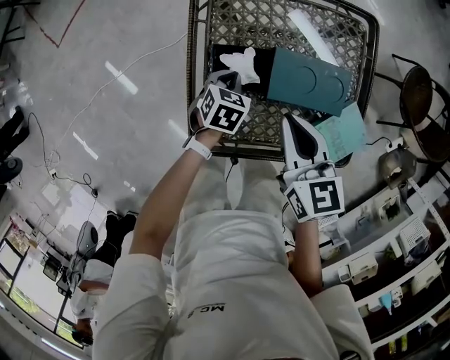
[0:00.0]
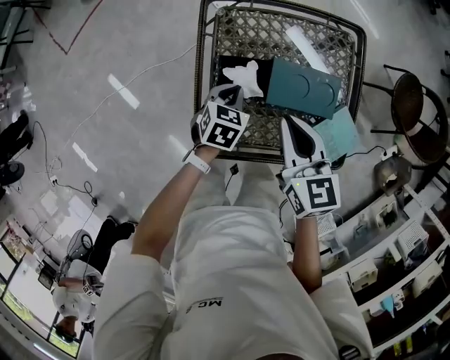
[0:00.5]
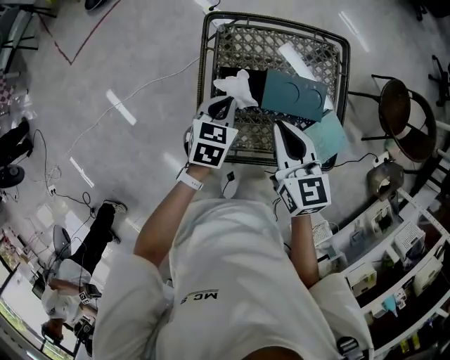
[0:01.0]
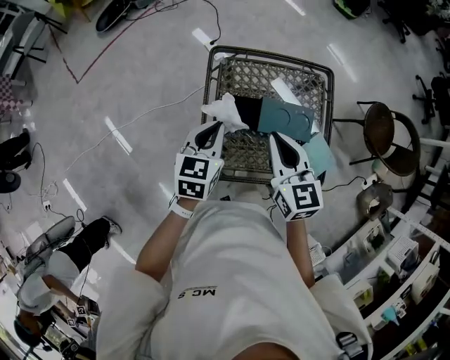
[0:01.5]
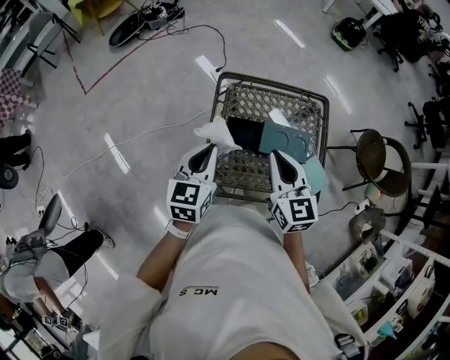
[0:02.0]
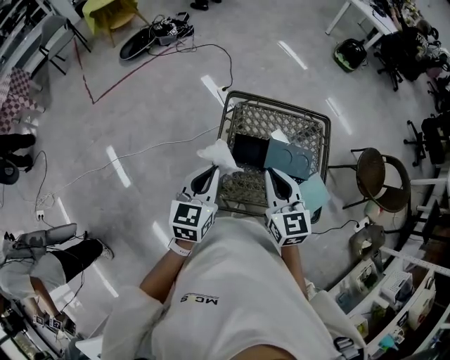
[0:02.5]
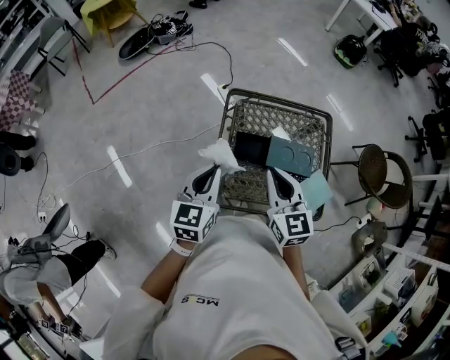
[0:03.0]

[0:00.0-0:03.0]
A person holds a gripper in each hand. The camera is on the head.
0:00.0 to 0:01.5: The right gripper moves upward, roughly 15 cm, while the left gripper goes about 30 cm upward, and turns by about 30 degrees.
0:01.5 to 0:03.0: The left gripper is displaced upward, to the left and backward by some 10 cm; the right gripper moves to the left, roughly 5 cm.

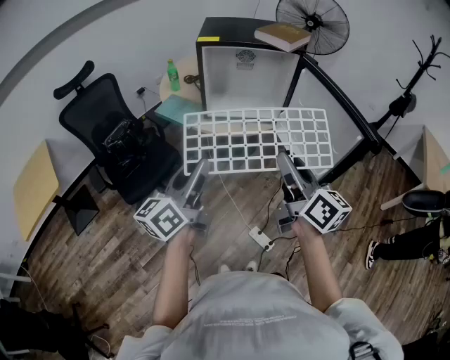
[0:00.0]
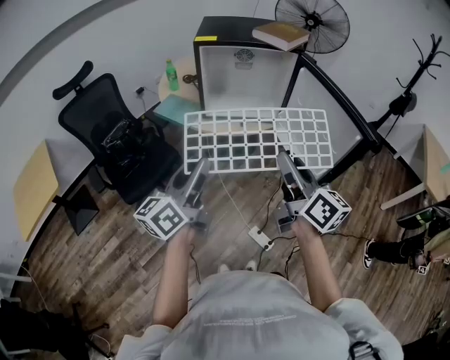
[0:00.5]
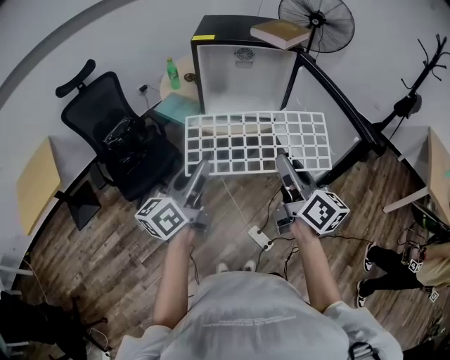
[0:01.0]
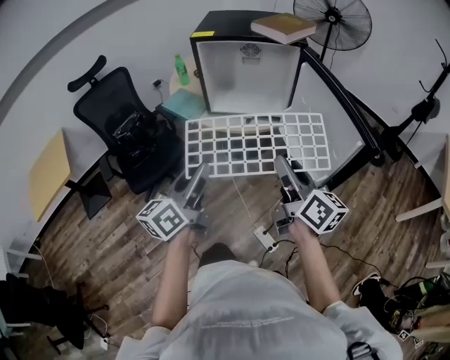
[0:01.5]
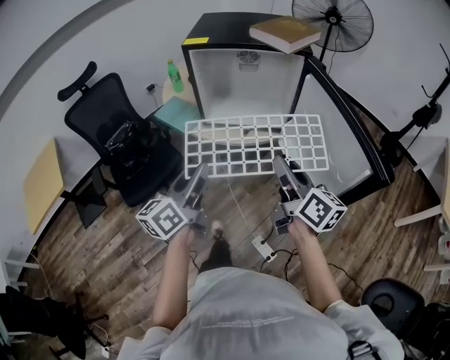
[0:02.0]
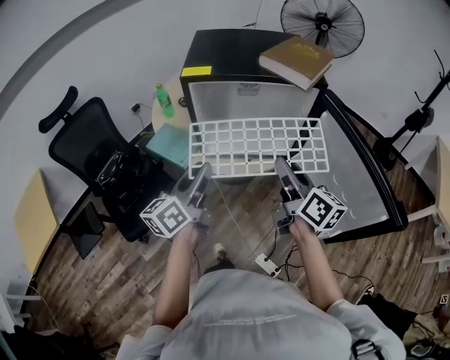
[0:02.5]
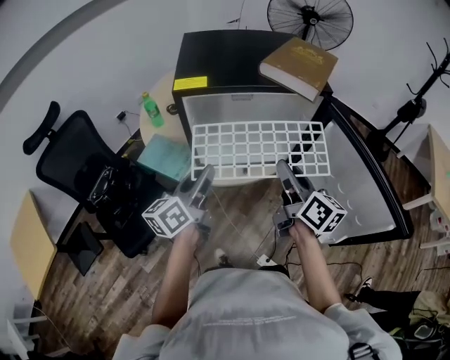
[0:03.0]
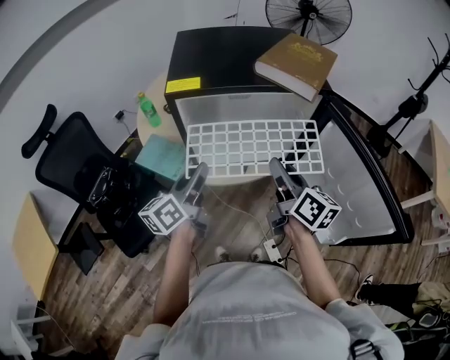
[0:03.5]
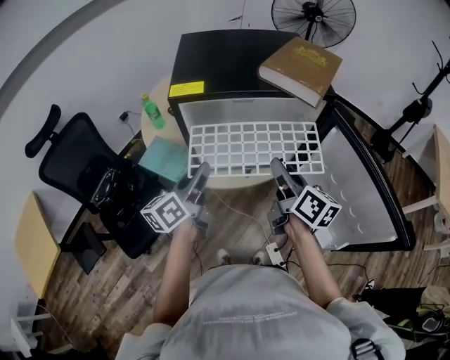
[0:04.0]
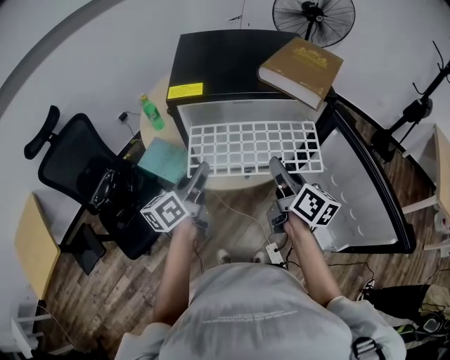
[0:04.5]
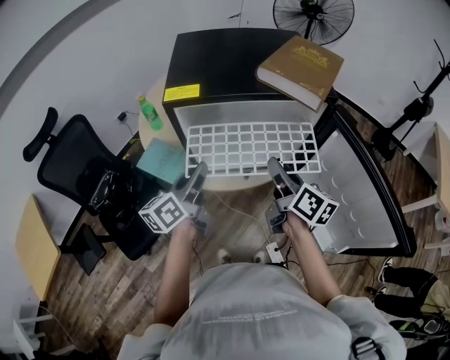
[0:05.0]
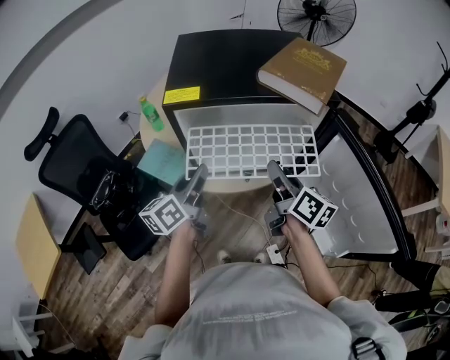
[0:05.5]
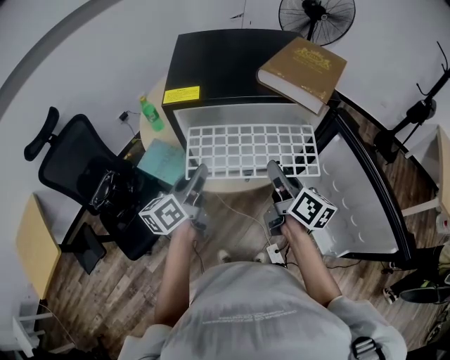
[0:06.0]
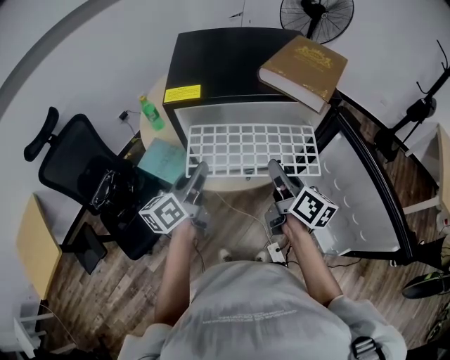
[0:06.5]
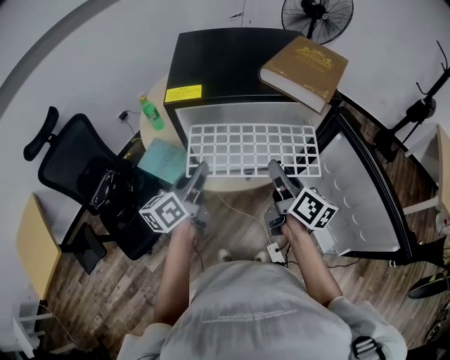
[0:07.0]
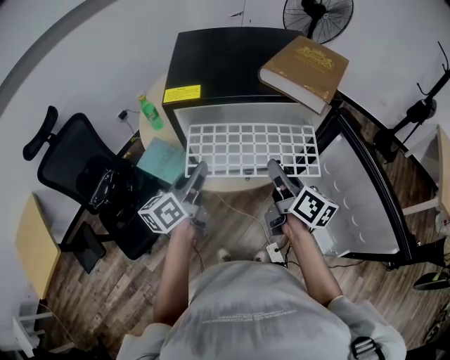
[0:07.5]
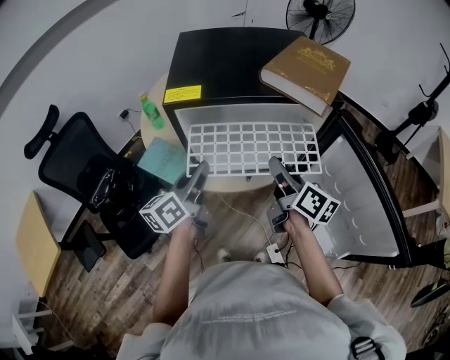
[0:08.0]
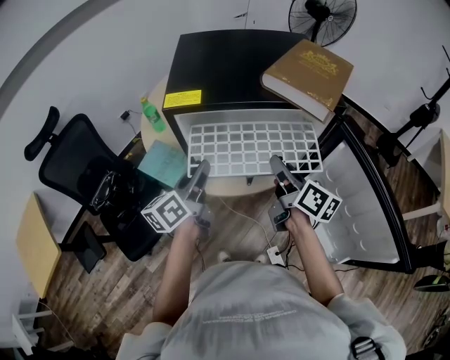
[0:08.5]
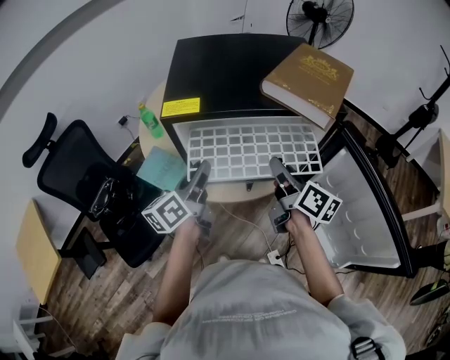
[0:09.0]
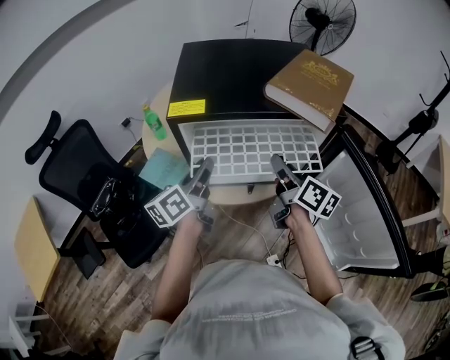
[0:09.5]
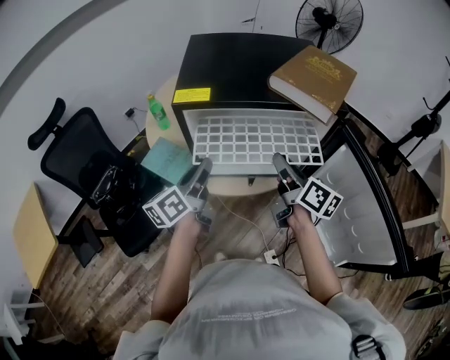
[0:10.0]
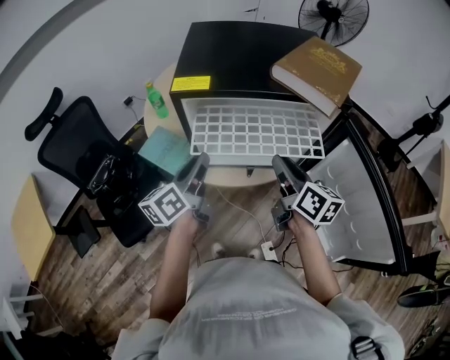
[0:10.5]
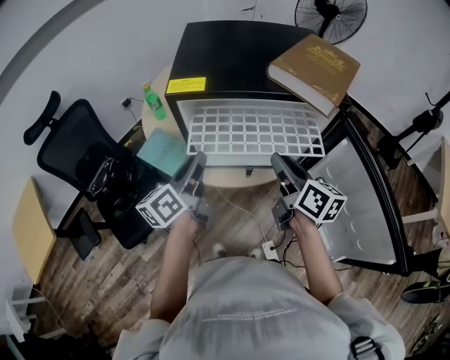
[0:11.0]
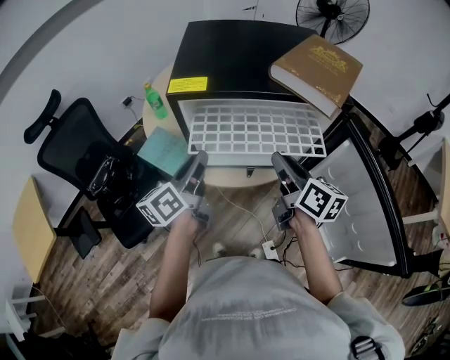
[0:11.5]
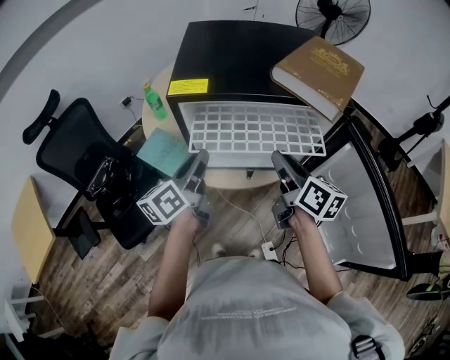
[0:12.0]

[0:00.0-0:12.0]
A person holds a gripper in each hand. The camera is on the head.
0:00.0 to 0:02.0: The right gripper heads forward, downward and to the right, covering about 15 cm. Meanwhile the left gripper is displaced forward and to the right by some 10 cm.
0:02.0 to 0:04.0: The two grippers go roughly 20 cm forward.
0:04.0 to 0:06.0: The grippers make only small movements.
0:06.0 to 0:08.0: Both grippers stay put.
0:08.0 to 0:12.0: There are only small adjustments of the grippers.

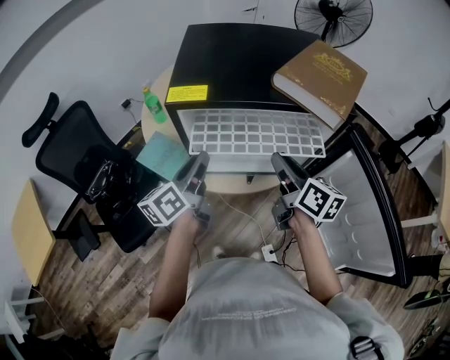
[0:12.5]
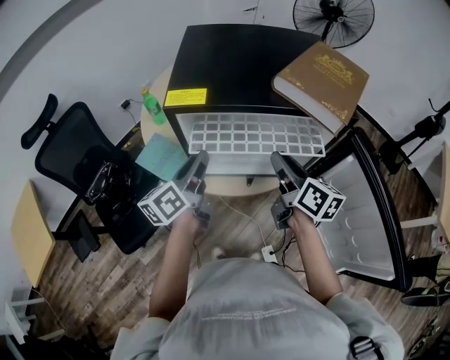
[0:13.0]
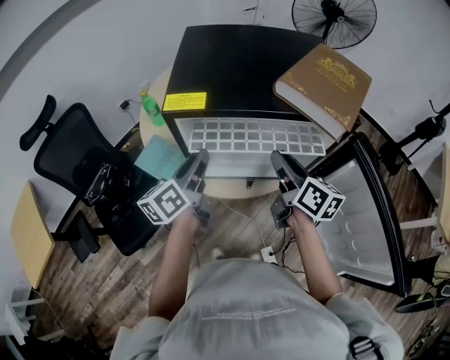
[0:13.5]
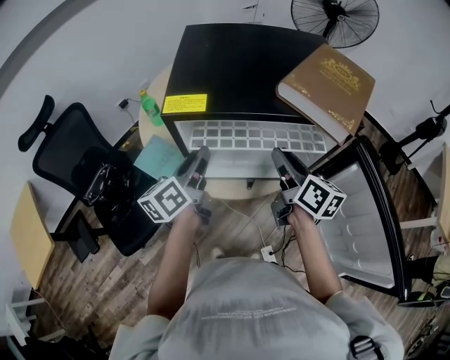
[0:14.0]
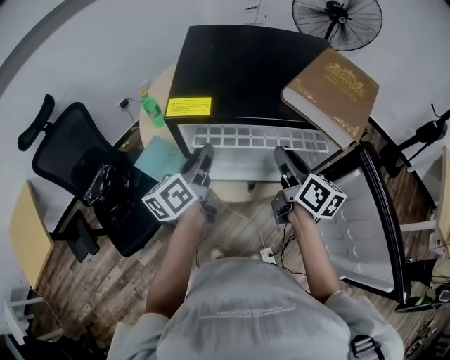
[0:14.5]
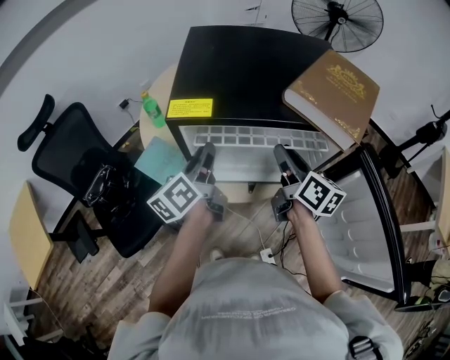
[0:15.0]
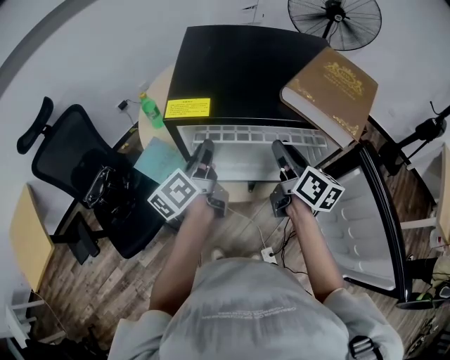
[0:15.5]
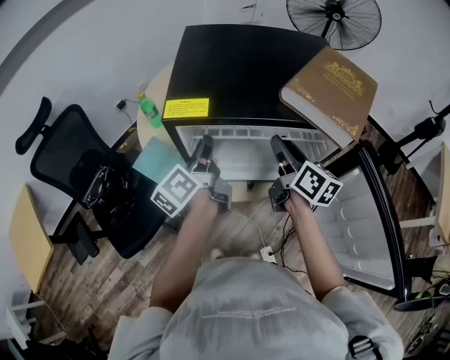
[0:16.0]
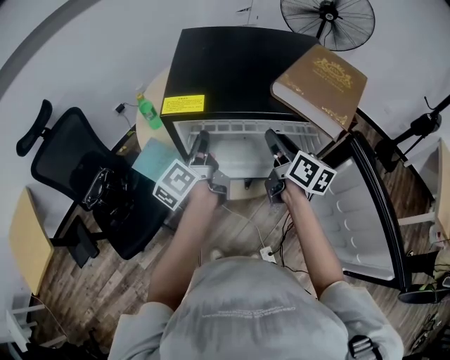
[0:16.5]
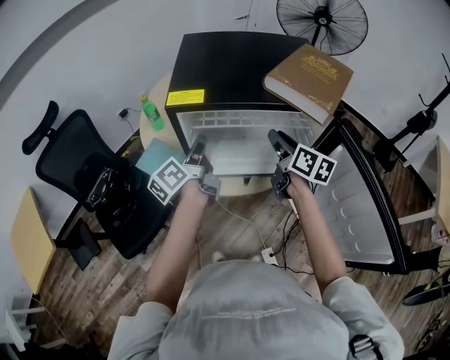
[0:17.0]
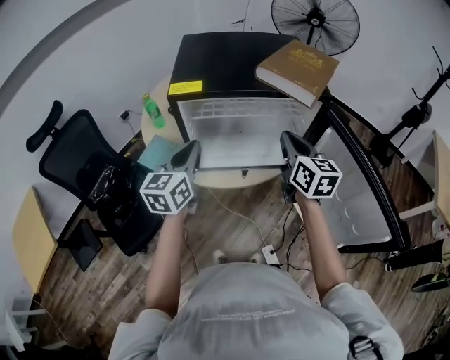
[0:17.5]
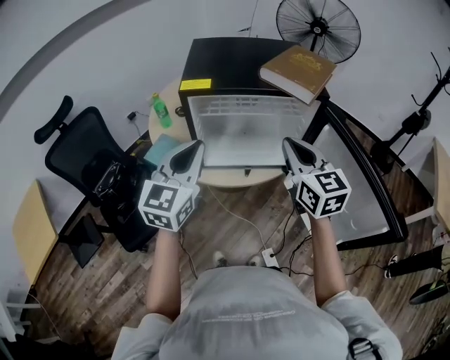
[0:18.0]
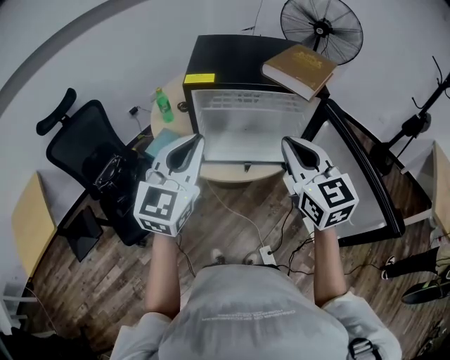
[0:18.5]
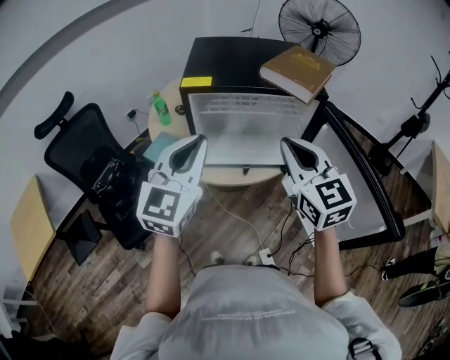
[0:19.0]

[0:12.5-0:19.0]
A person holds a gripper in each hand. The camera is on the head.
0:12.5 to 0:14.5: Both grippers move forward, approximately 5 cm.
0:17.0 to 0:19.0: Both grippers move backward and upward, approximately 25 cm. The left gripper rolls clockwise, seen from behind, by about 80 degrees. The right gripper twists approximately 50 degrees counterclockwise, seen from behind, and closes up.

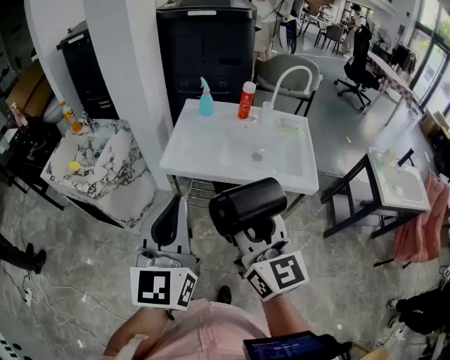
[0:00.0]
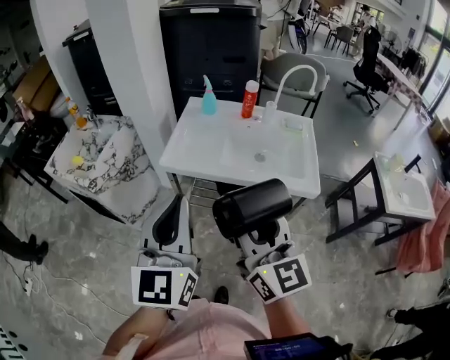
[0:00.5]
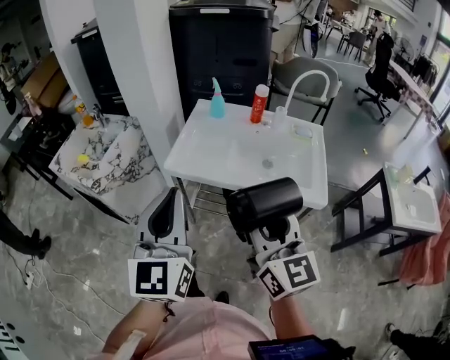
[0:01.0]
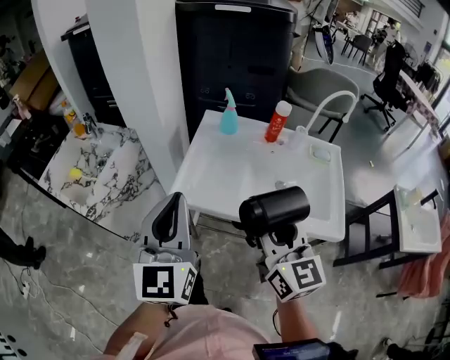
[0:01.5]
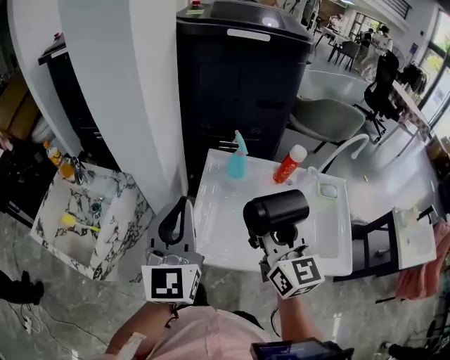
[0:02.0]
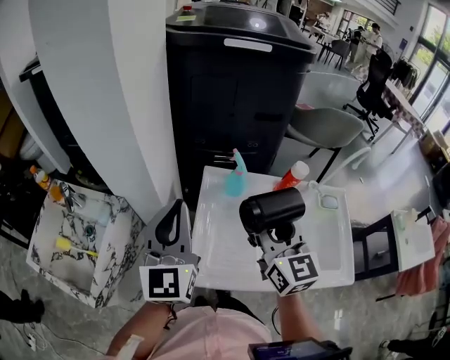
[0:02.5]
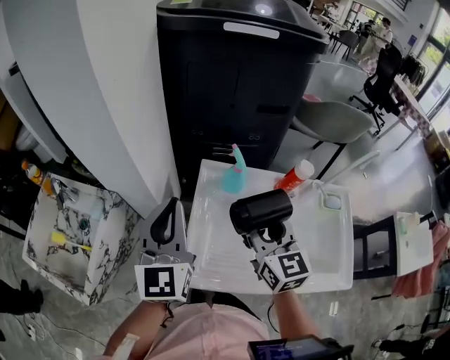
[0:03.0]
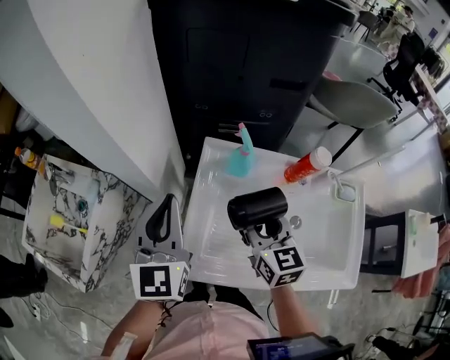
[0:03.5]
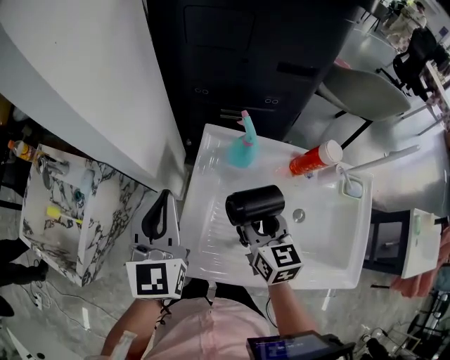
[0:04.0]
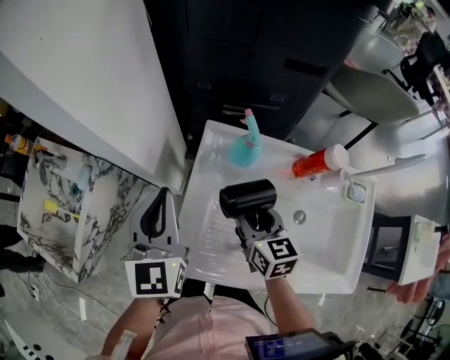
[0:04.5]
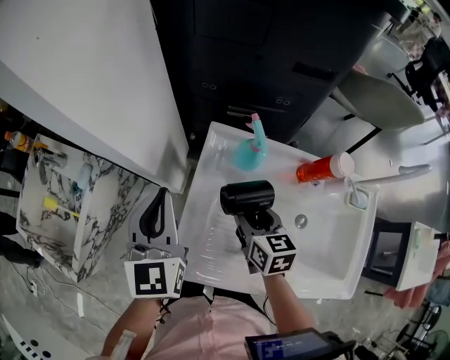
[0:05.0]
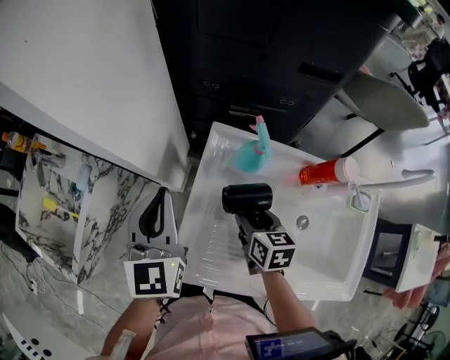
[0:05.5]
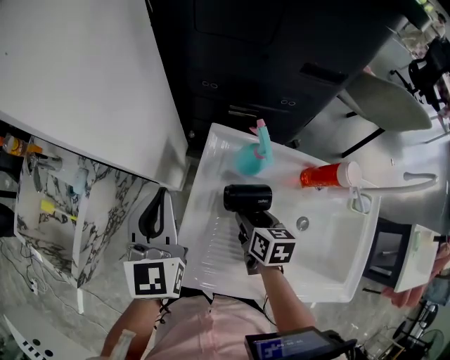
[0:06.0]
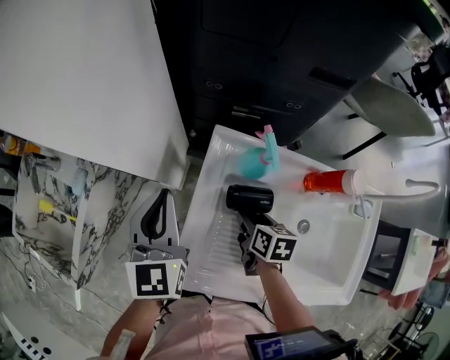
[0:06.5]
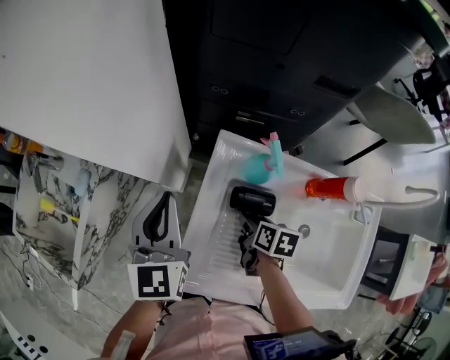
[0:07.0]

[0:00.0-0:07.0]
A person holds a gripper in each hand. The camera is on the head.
0:00.0 to 0:02.0: The two grippers go roughly 35 cm forward.
0:02.0 to 0:03.5: The left gripper travels forward and downward by roughly 15 cm; the right gripper is displaced downward and forward by roughly 20 cm, and turns by about 20 degrees.
0:03.5 to 0:05.0: The left gripper is displaced downward by about 5 cm, while the right gripper shifts about 10 cm downward.
0:05.0 to 0:07.0: The right gripper is displaced downward by some 10 cm, and rotates roughly 30 degrees.
